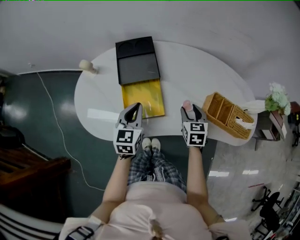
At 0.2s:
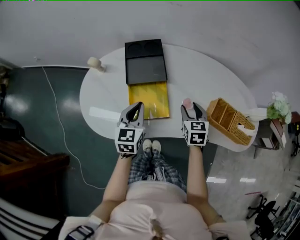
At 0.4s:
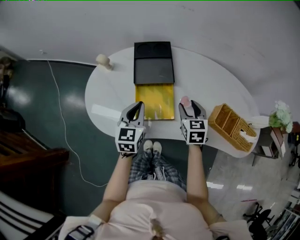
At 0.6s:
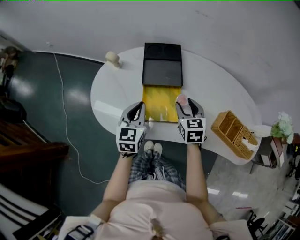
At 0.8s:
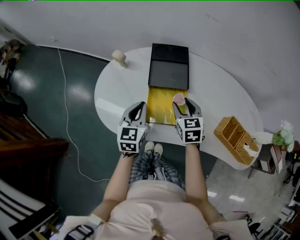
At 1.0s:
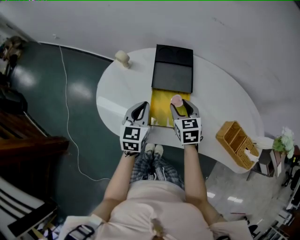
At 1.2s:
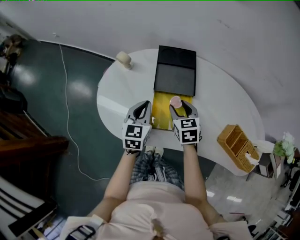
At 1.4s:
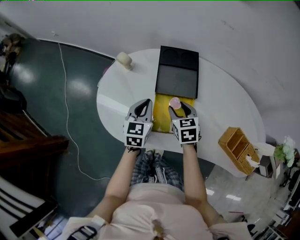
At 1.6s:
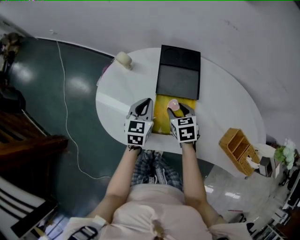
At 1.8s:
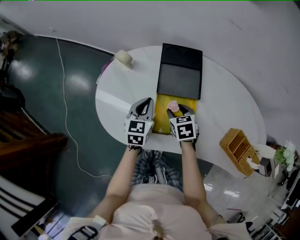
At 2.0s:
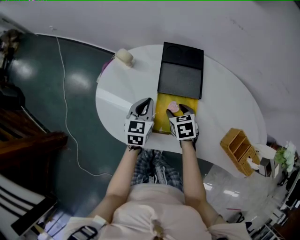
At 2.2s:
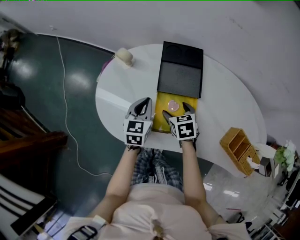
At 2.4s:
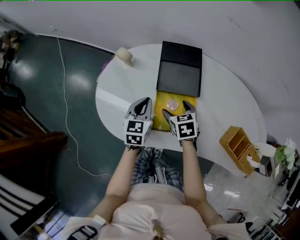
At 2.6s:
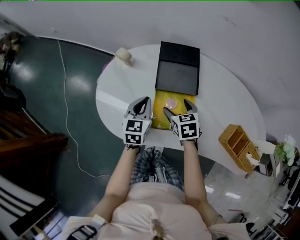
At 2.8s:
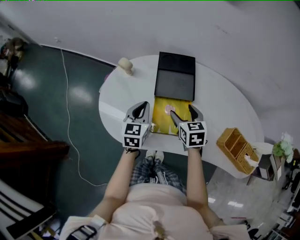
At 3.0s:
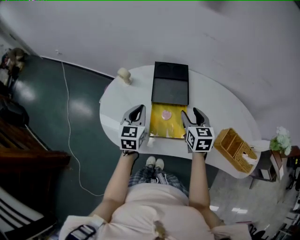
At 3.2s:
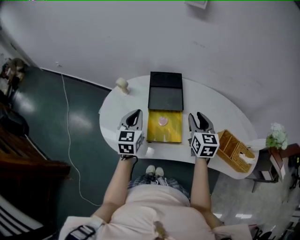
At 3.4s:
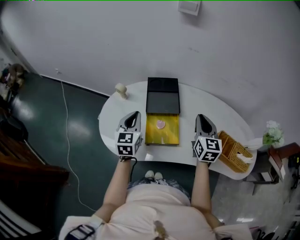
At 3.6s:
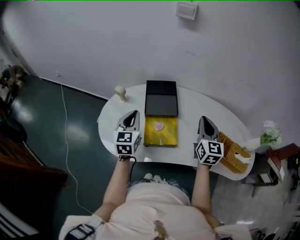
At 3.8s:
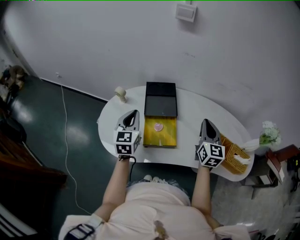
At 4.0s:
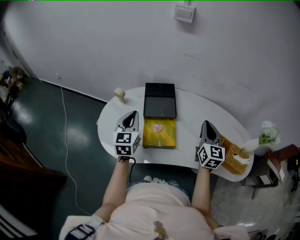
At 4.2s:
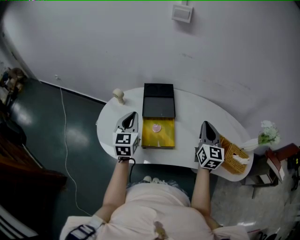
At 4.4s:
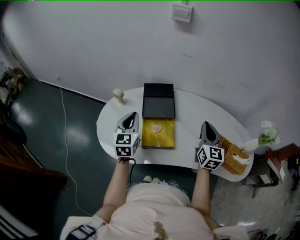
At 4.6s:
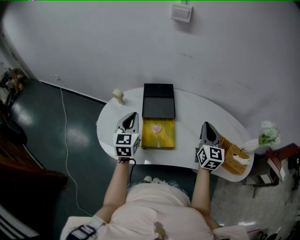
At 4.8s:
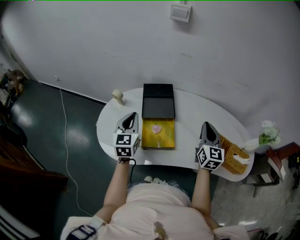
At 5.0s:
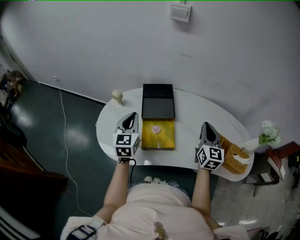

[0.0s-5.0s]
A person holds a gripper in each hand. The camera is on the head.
0.0s to 1.6s: The left gripper heads to the left and forward, covering about 15 cm. Meanwhile the right gripper heads to the left and forward, covering approximately 25 cm, and turns by some 30 degrees.
1.6s to 3.4s: The left gripper moves upward, approximately 15 cm. Meanwhile the right gripper travels upward and to the right by about 25 cm, tips its fingers upward by about 40 degrees, and closes up.
3.4s to 5.0s: The right gripper heads to the right, covering approximately 5 cm.

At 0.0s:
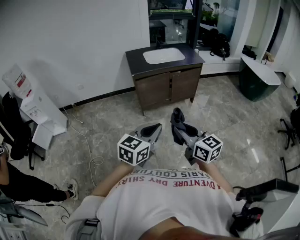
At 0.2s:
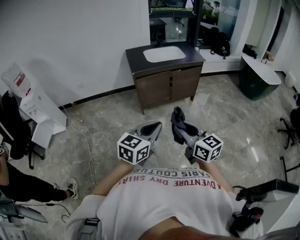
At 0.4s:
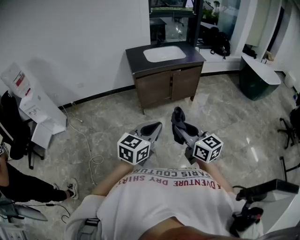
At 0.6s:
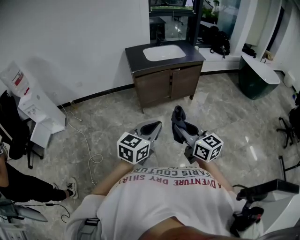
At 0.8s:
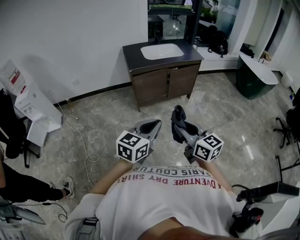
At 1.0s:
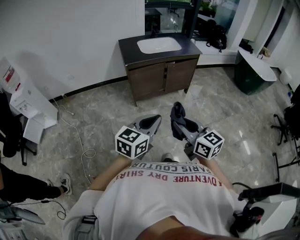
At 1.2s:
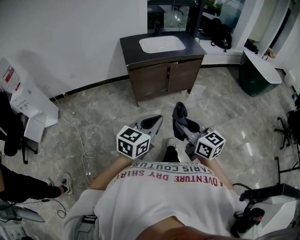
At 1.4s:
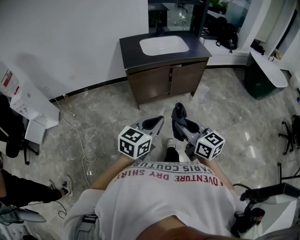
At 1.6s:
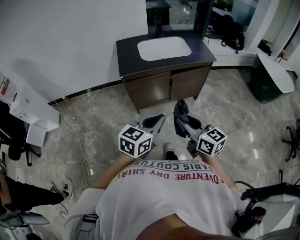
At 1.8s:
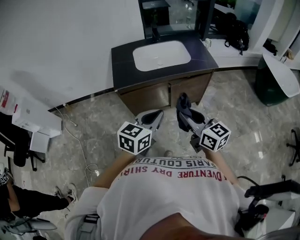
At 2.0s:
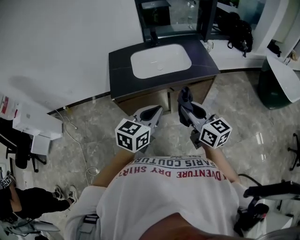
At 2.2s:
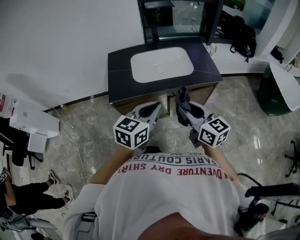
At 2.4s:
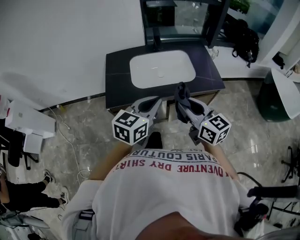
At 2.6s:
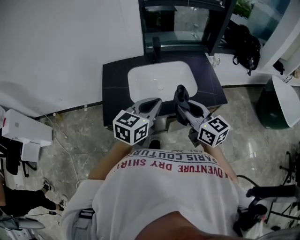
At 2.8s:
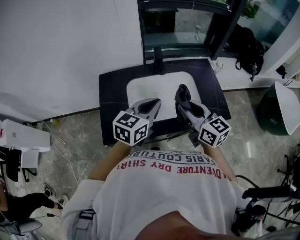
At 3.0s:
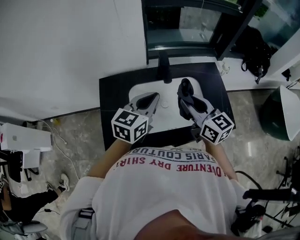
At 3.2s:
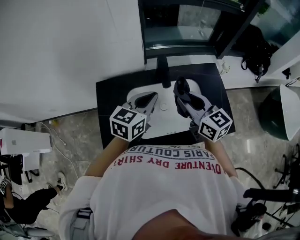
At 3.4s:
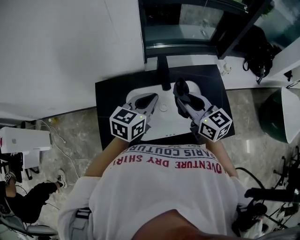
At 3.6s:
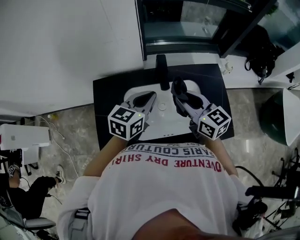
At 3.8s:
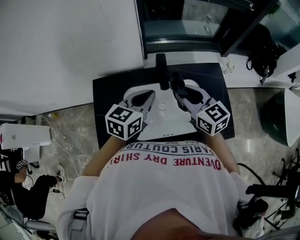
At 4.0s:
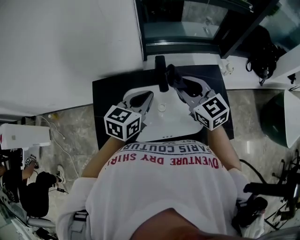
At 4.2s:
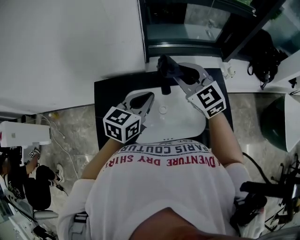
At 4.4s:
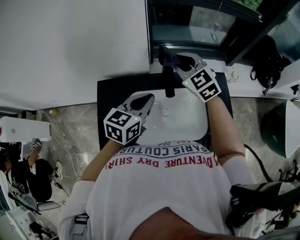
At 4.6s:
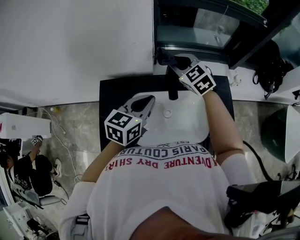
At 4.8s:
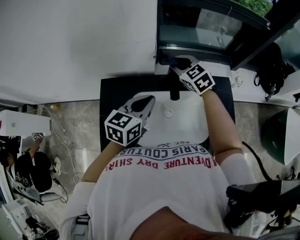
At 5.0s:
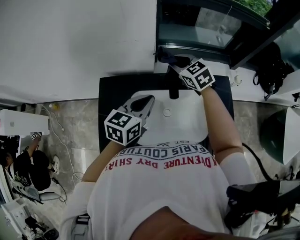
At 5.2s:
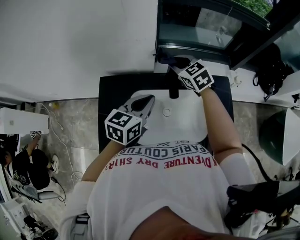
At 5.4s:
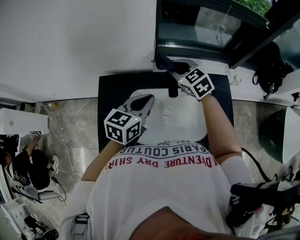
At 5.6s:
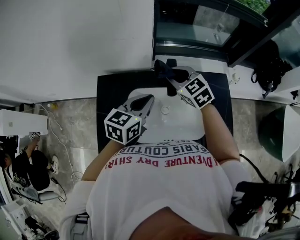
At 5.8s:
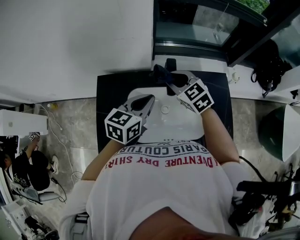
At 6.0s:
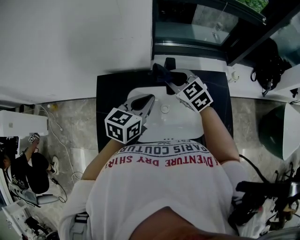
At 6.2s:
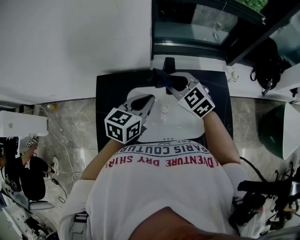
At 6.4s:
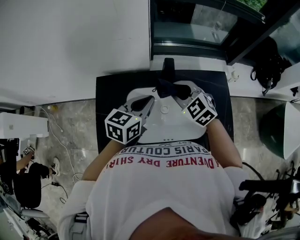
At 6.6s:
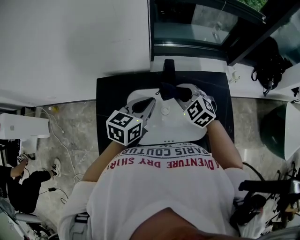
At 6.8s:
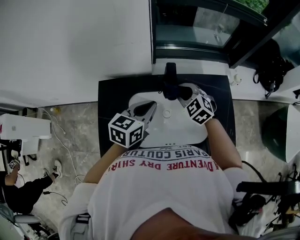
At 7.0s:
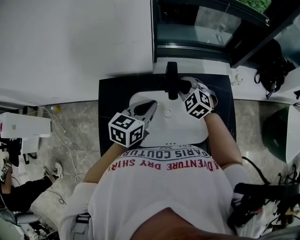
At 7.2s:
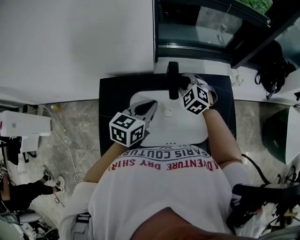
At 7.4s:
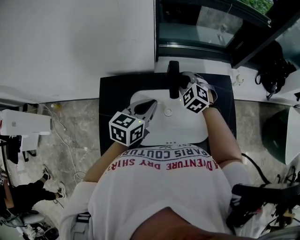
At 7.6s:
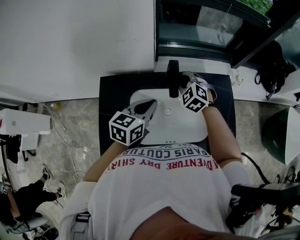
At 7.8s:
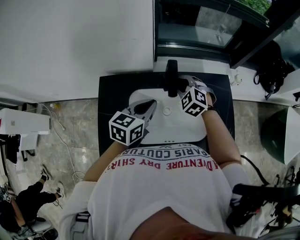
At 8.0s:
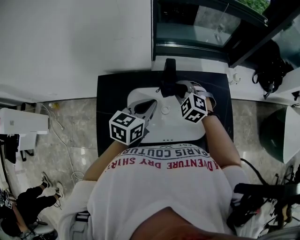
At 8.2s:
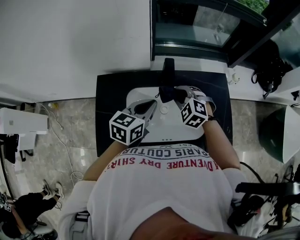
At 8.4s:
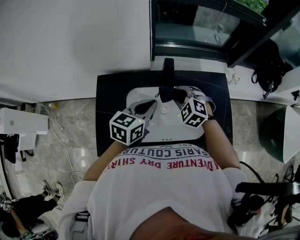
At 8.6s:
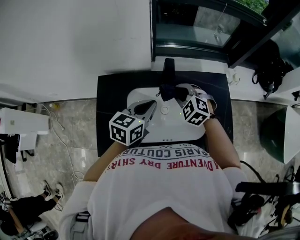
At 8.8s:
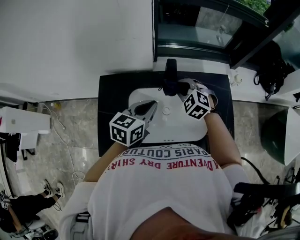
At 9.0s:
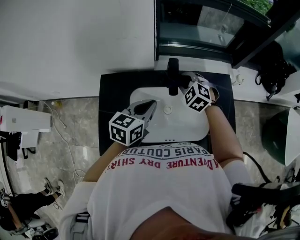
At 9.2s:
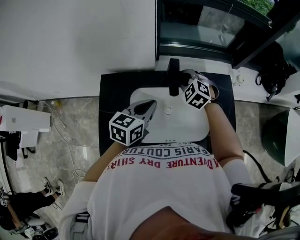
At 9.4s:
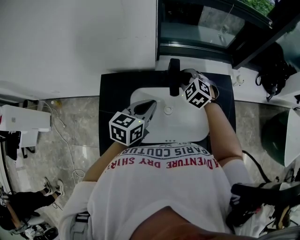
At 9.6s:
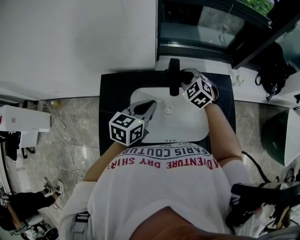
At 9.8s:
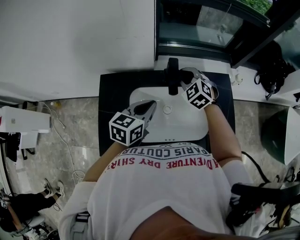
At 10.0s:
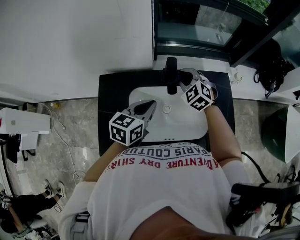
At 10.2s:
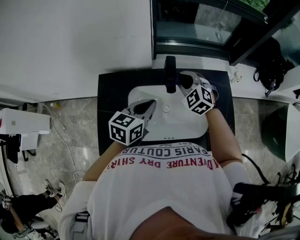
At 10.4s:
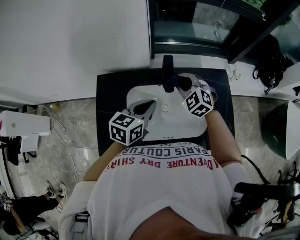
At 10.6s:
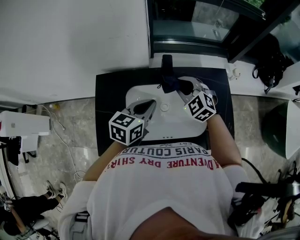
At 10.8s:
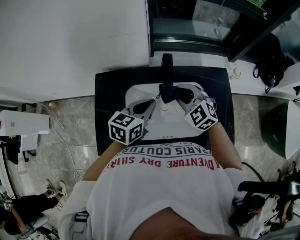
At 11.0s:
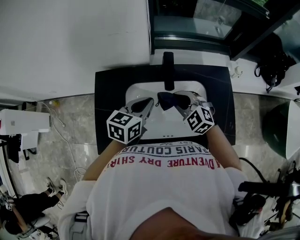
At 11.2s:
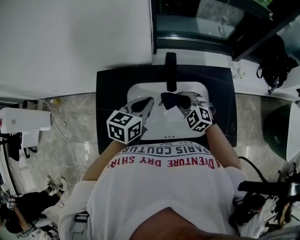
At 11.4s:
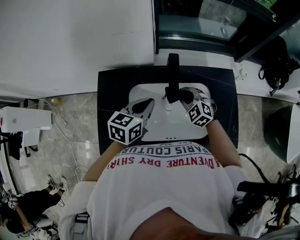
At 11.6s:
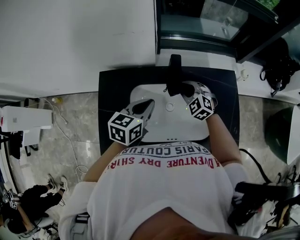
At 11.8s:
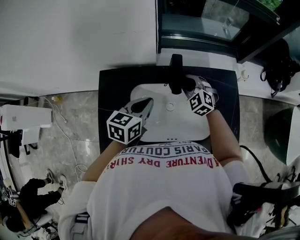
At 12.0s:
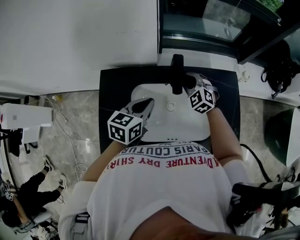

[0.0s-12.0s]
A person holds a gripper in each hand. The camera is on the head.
0.0s to 1.6s: The grippers both shift forward by some 30 cm.
1.6s to 3.0s: The two grippers travel together, forward, approximately 70 cm.
3.0s to 4.4s: The left gripper is displaced forward by about 10 cm; the right gripper shifts some 25 cm forward, and rotates around the line of its fingers by some 40 degrees, counterclockwise from behind.
4.4s to 6.0s: The right gripper heads downward, covering roughly 10 cm.
6.0s to 7.6s: The right gripper is displaced downward by some 5 cm, reaches approximately 5 cm backward, then returns, and turns by about 30 degrees.
7.6s to 9.0s: The right gripper goes backward and returns, approximately 10 cm each way.
9.0s to 10.4s: There are only small adjustments of the grippers.
10.4s to 12.0s: The right gripper travels downward by approximately 5 cm, while the left gripper ends up some 5 cm from where it was.

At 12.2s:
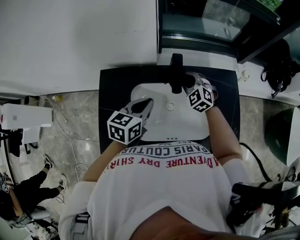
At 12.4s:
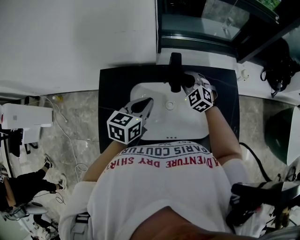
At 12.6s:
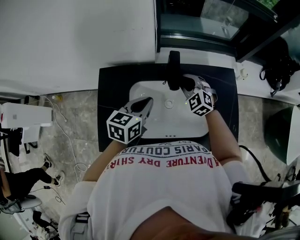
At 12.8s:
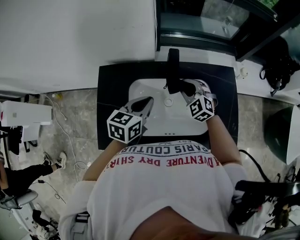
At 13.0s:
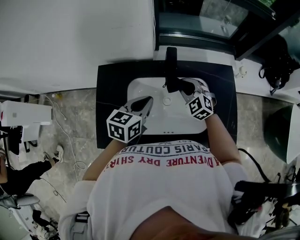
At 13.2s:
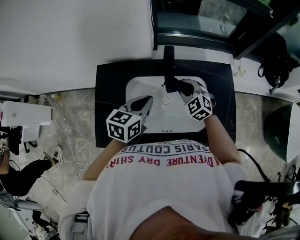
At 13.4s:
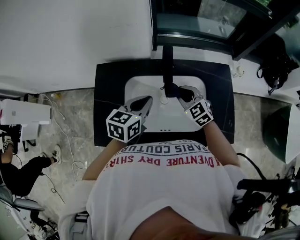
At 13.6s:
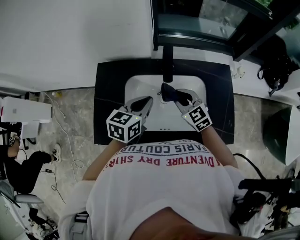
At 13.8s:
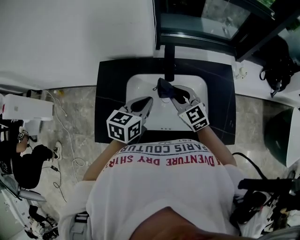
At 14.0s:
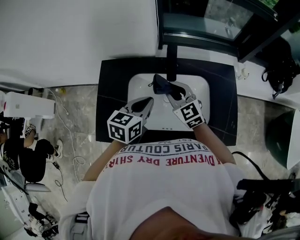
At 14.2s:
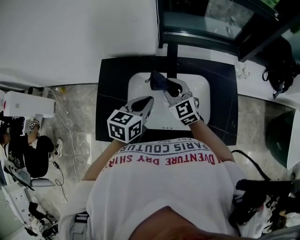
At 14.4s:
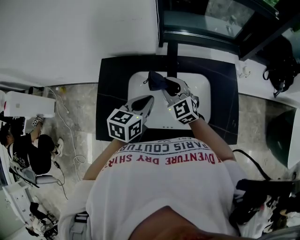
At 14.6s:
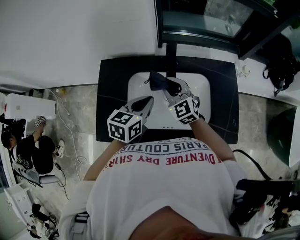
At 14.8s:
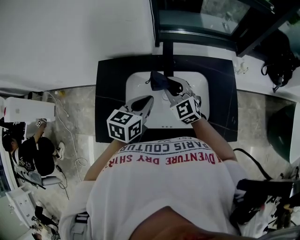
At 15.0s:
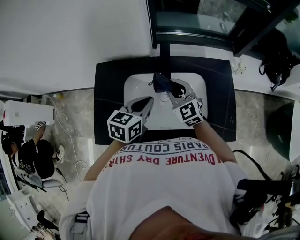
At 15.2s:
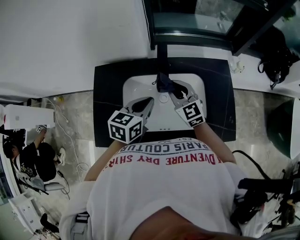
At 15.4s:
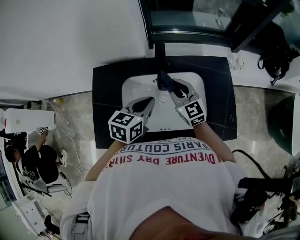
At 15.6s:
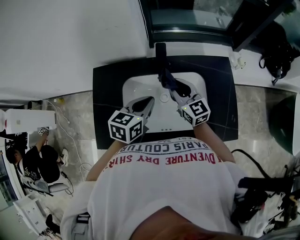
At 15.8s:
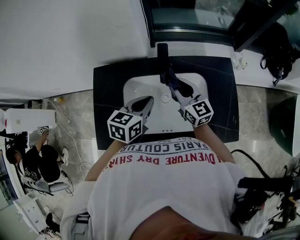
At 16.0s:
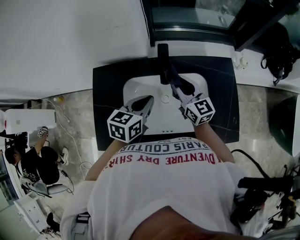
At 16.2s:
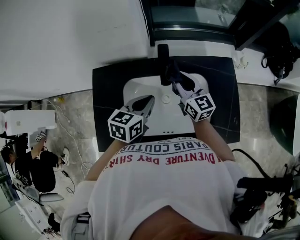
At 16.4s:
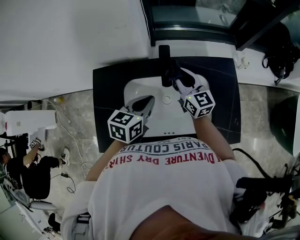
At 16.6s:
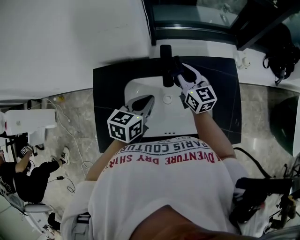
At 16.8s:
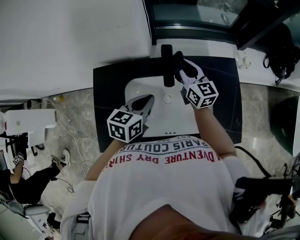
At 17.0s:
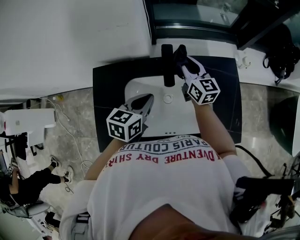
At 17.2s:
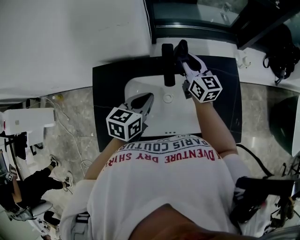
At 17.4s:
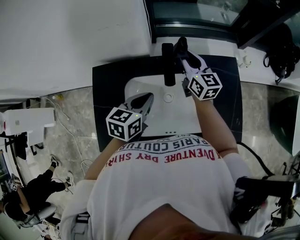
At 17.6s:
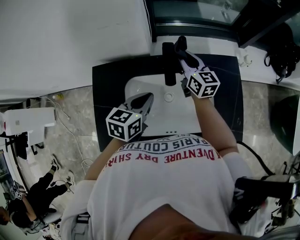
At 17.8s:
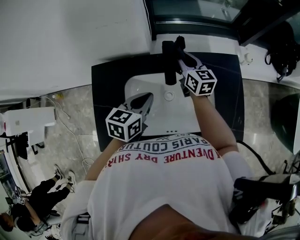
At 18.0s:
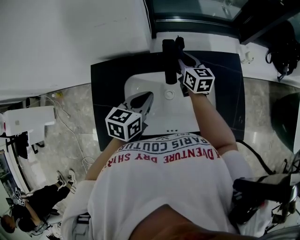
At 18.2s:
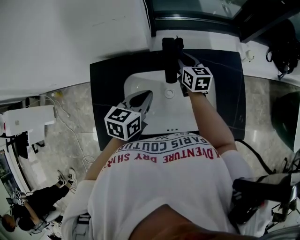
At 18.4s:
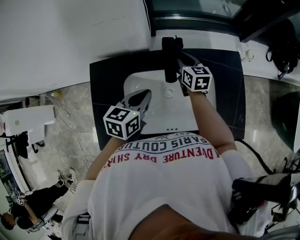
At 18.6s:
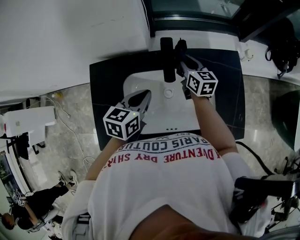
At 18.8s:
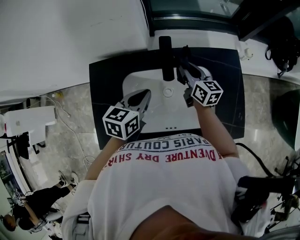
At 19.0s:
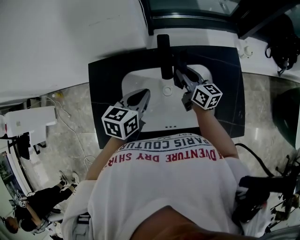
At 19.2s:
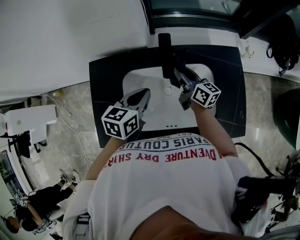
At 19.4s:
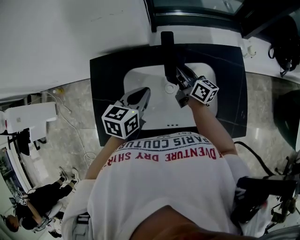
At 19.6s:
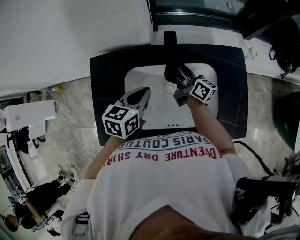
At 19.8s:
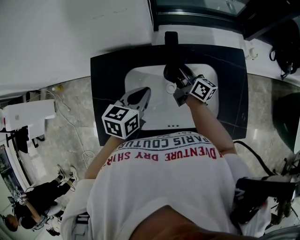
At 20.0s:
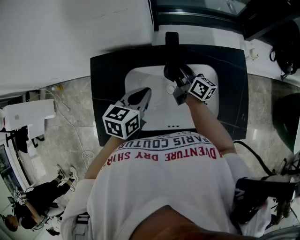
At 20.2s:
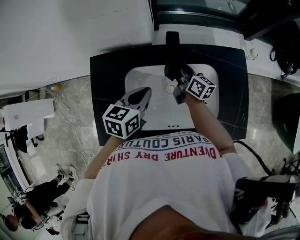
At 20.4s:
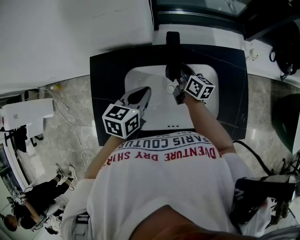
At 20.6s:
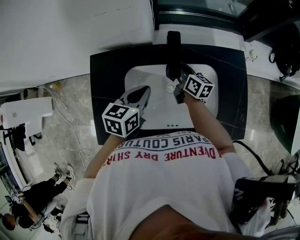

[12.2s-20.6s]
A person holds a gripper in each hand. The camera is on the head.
12.2s to 13.6s: The left gripper goes roughly 5 cm backward. The right gripper moves backward, approximately 15 cm, and changes its angle by roughly 30 degrees.
15.0s to 16.4s: The left gripper travels forward by approximately 5 cm. Meanwhile the right gripper heads forward, covering about 10 cm, and turns by about 30 degrees.
16.4s to 17.8s: The right gripper heads forward, covering approximately 10 cm.
17.8s to 19.2s: The right gripper is displaced backward by about 10 cm, and rotates some 30 degrees.
19.2s to 20.6s: The right gripper moves some 5 cm.
